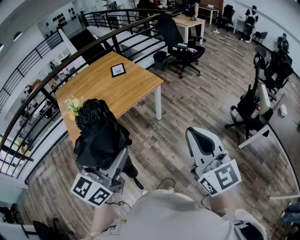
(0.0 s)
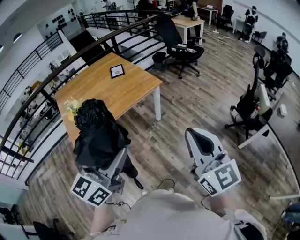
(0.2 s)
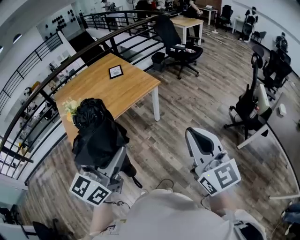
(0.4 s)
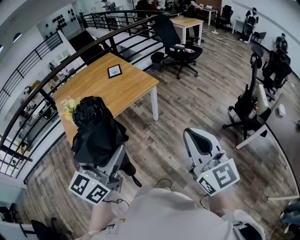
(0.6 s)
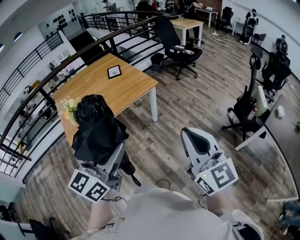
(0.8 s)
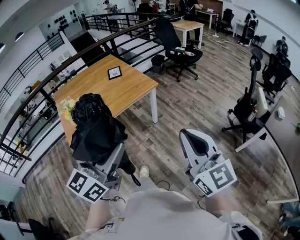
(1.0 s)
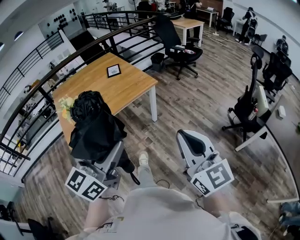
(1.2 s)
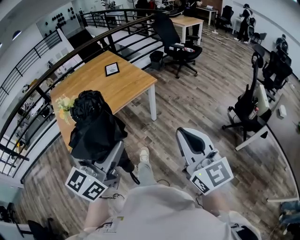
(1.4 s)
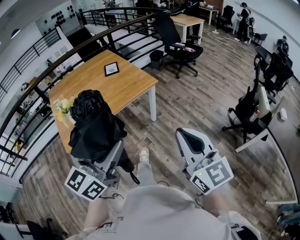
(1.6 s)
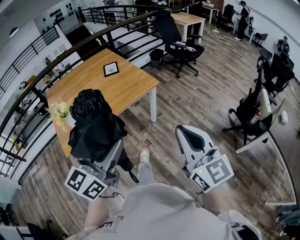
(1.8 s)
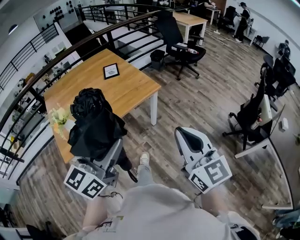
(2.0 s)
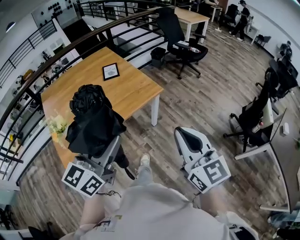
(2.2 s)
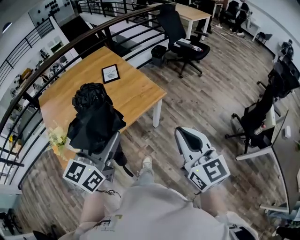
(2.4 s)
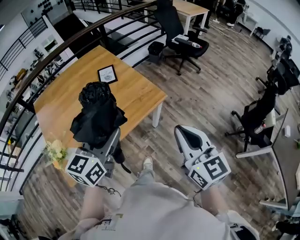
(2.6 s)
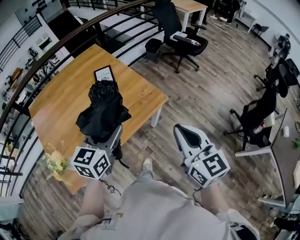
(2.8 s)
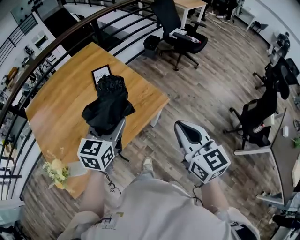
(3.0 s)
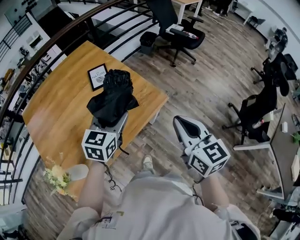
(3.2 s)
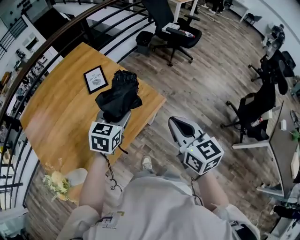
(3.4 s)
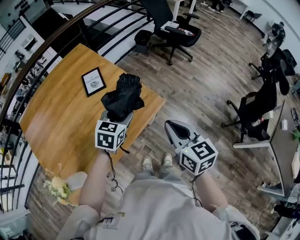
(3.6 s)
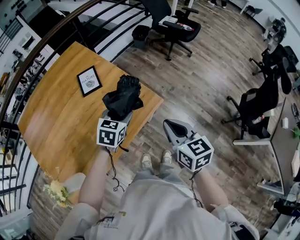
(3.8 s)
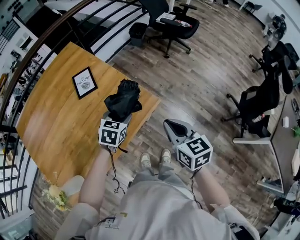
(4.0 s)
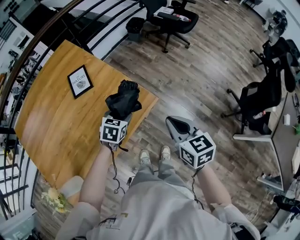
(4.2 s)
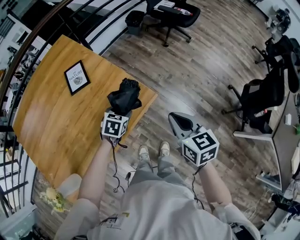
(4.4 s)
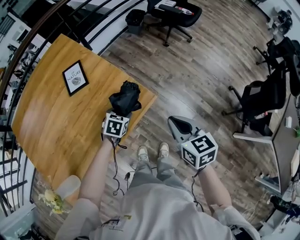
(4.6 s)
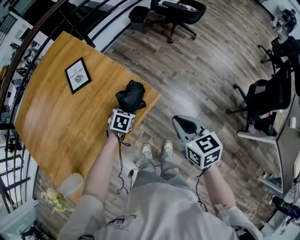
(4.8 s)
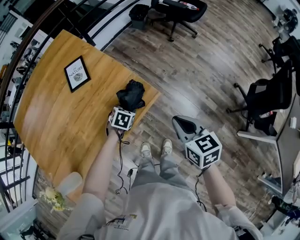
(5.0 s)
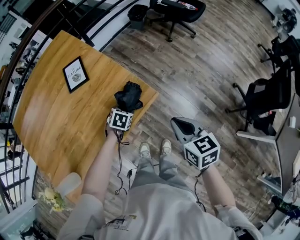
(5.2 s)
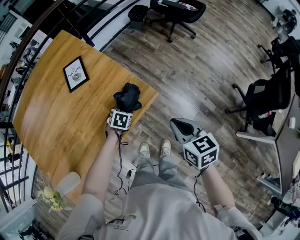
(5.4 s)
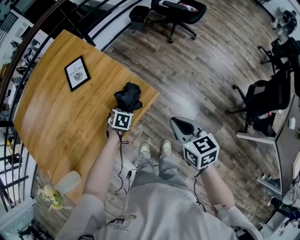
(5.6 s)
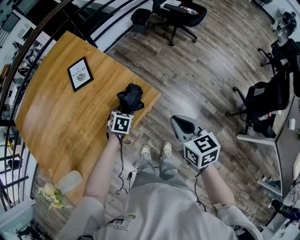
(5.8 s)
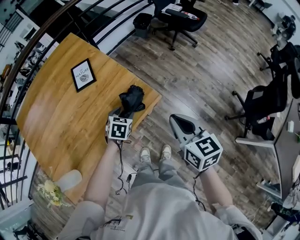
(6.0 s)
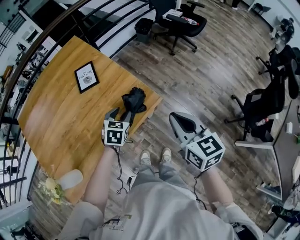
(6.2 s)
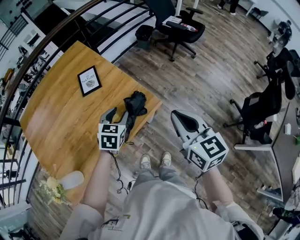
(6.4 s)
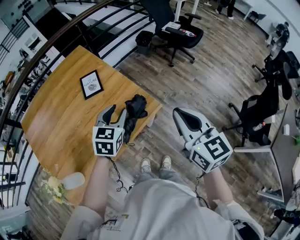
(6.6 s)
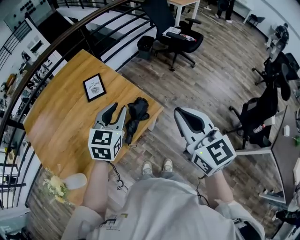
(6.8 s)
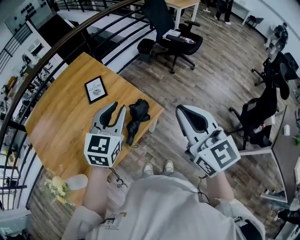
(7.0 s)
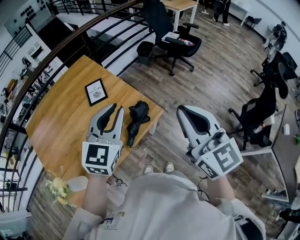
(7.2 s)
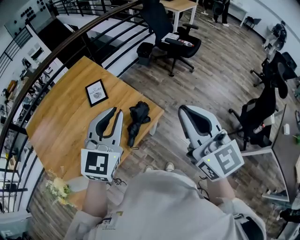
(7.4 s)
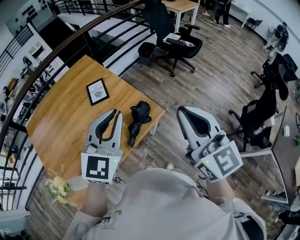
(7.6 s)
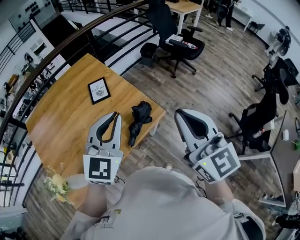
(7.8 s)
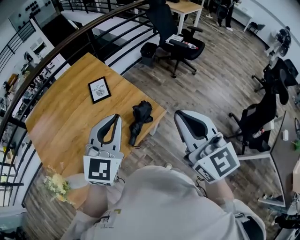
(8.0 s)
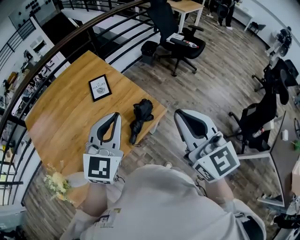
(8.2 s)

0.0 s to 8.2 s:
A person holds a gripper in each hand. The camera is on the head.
0.0 to 1.6 s: The left gripper goes about 5 cm forward, while the right gripper travels downward and forward by approximately 10 cm.
1.6 to 3.2 s: Both grippers are carried forward, approximately 60 cm. The right gripper turns by roughly 20 degrees. The left gripper turns by roughly 30 degrees.
3.2 to 5.0 s: The left gripper is displaced downward by approximately 35 cm, and angles its fingers downward, by roughly 40 degrees, while the right gripper travels downward, forward and to the right by about 25 cm, and swivels approximately 20 degrees.
5.0 to 6.6 s: The right gripper moves upward, approximately 20 cm, and changes its angle by about 30 degrees; the left gripper moves upward, roughly 30 cm, and tips its fingers upward by about 30 degrees.
6.6 to 8.2 s: The right gripper goes some 10 cm upward and to the left; the left gripper shifts about 20 cm upward and backward, rotates approximately 30 degrees, and closes.

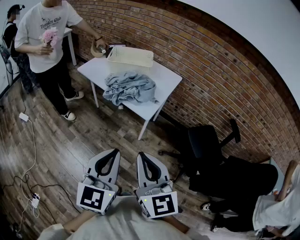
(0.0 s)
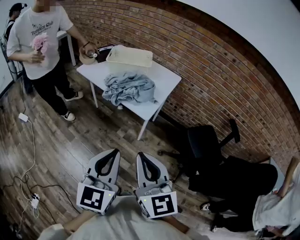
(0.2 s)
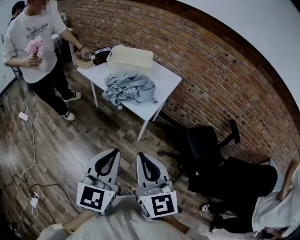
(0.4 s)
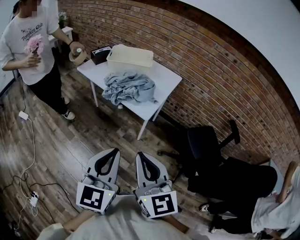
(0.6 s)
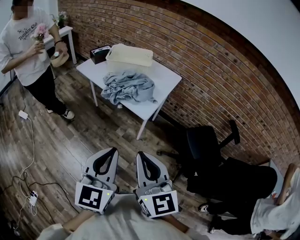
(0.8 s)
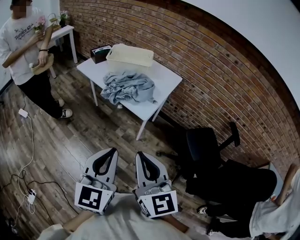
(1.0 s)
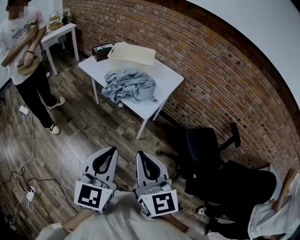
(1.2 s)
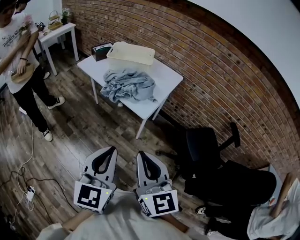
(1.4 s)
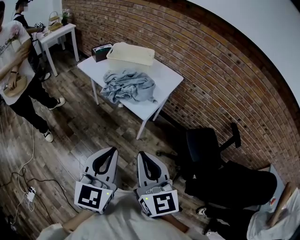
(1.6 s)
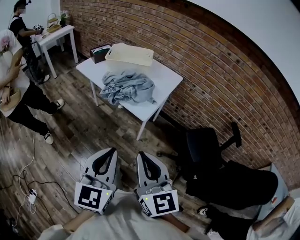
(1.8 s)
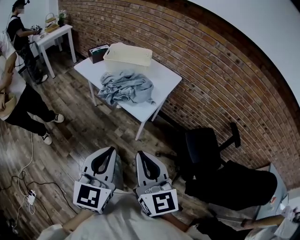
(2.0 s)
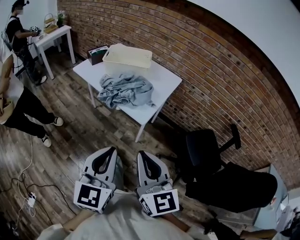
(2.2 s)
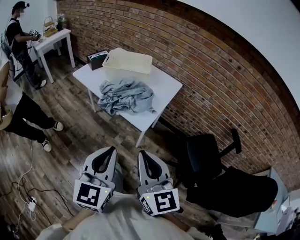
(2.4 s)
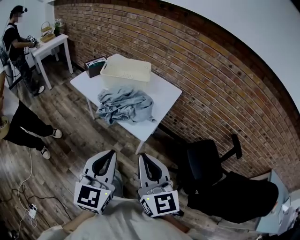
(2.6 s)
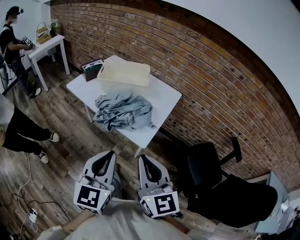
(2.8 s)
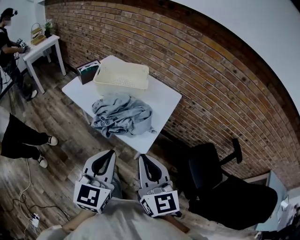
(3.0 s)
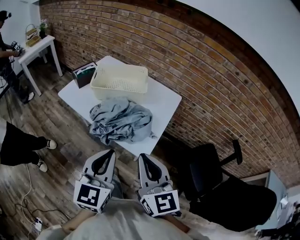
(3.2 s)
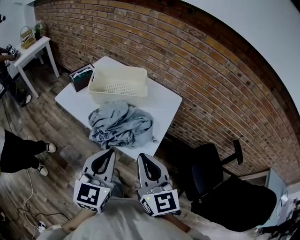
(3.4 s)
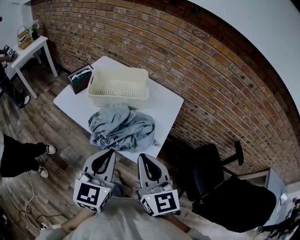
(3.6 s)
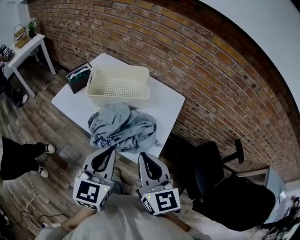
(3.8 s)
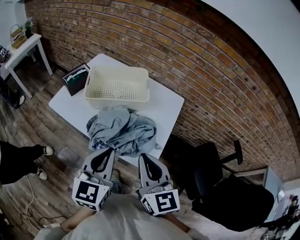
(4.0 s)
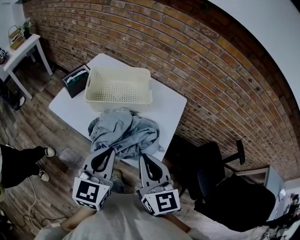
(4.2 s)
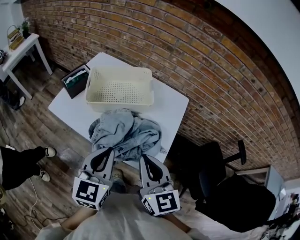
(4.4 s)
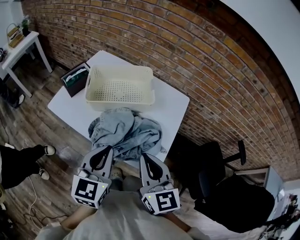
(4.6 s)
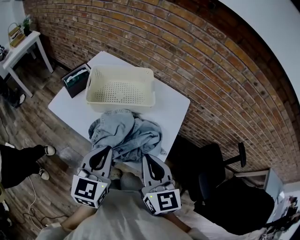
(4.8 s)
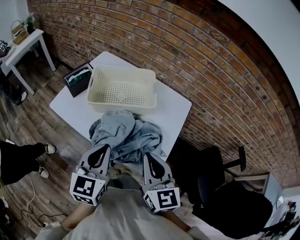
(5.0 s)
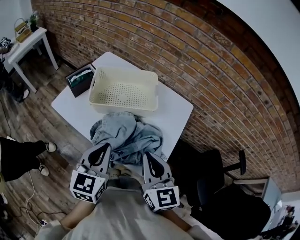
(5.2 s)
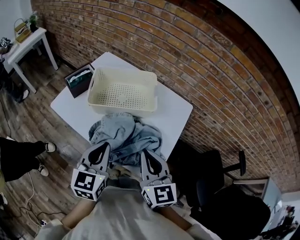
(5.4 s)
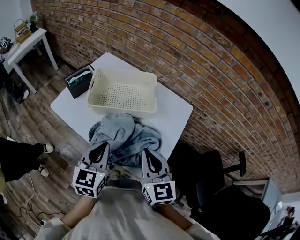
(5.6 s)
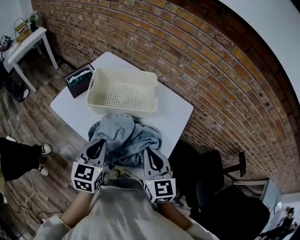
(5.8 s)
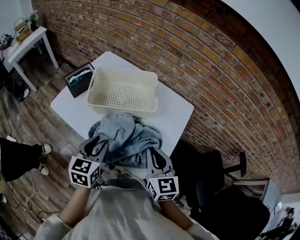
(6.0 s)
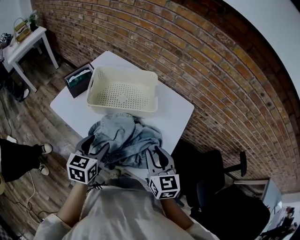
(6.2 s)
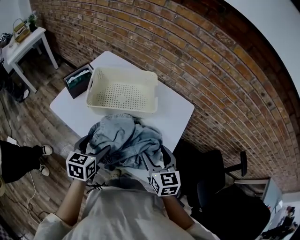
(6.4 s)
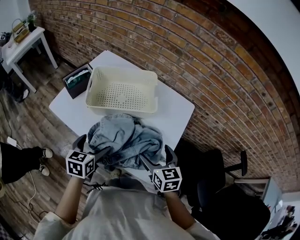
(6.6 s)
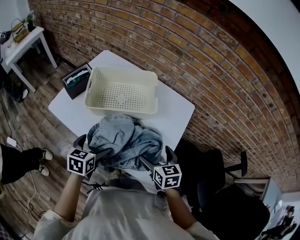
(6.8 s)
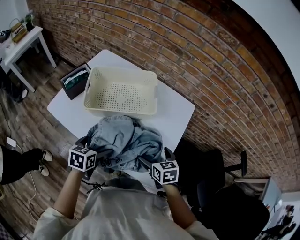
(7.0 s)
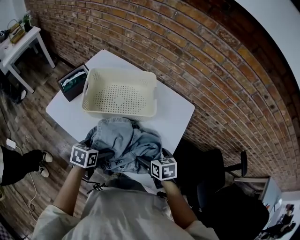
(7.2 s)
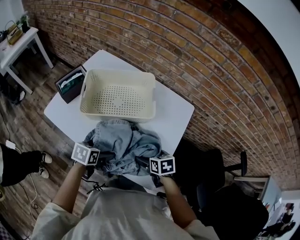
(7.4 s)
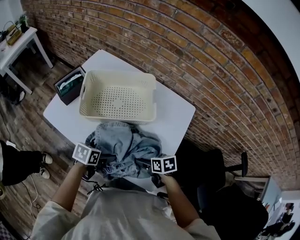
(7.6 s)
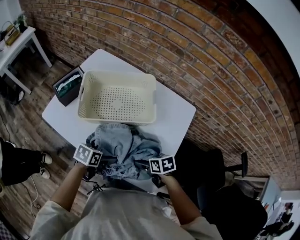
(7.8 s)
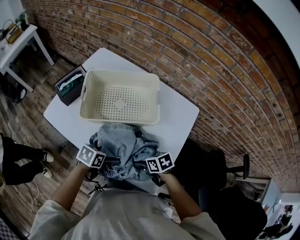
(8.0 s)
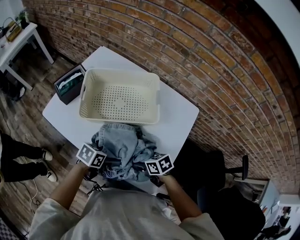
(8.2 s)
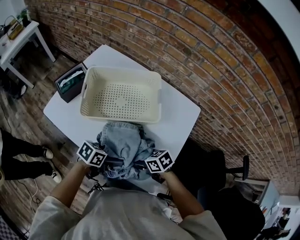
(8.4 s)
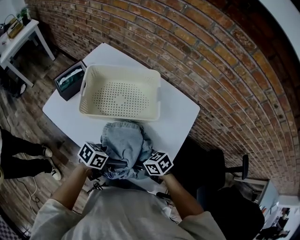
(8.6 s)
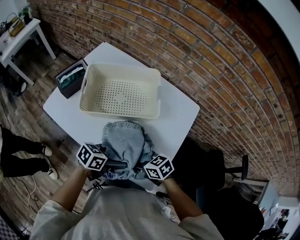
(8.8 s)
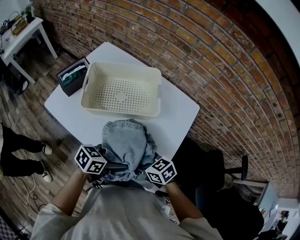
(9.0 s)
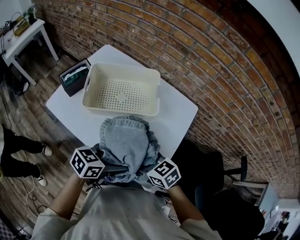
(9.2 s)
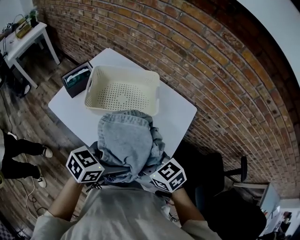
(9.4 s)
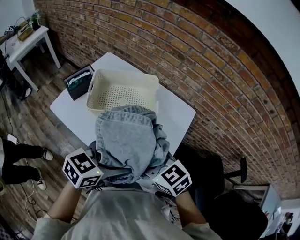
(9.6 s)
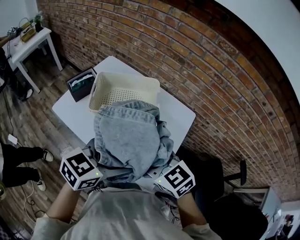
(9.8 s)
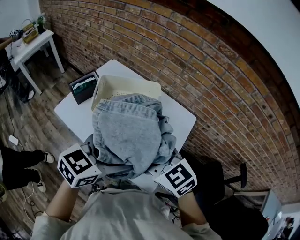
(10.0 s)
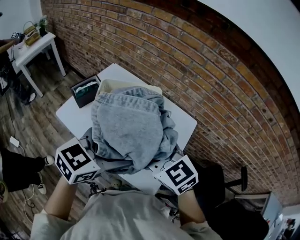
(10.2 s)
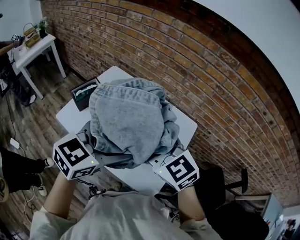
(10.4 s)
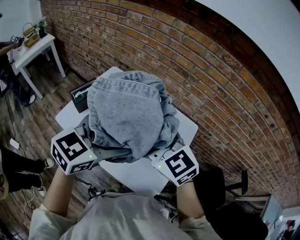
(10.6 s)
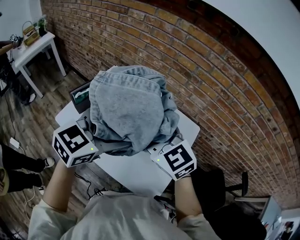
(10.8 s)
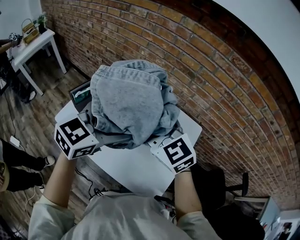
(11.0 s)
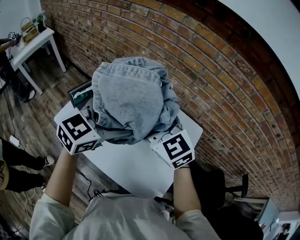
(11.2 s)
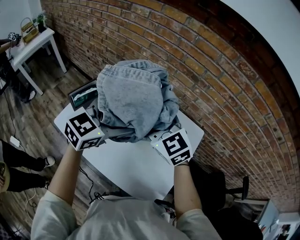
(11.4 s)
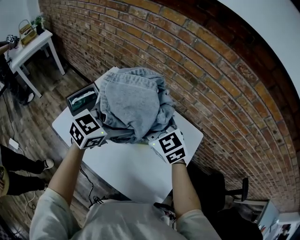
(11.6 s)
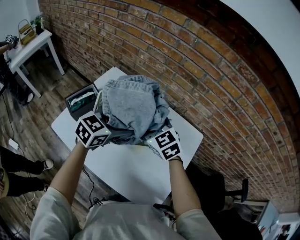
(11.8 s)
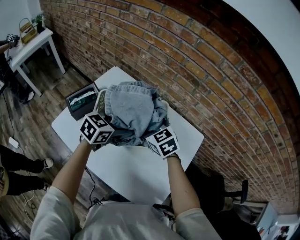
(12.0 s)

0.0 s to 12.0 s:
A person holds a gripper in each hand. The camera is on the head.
0.0 to 1.6 s: The grippers make only small movements.
1.6 to 3.0 s: Both grippers travel together forward, about 20 cm.
3.0 to 4.4 s: The grippers both shift forward by some 20 cm.
4.4 to 6.0 s: The left gripper is displaced downward and forward by roughly 10 cm, while the right gripper moves forward and downward, approximately 10 cm.
6.0 to 7.6 s: Both grippers move downward, about 20 cm. The right gripper tips its fingers downward by roughly 40 degrees, and opens its fingers. The left gripper changes its angle by about 40 degrees, and opens up.
7.6 to 9.0 s: The left gripper moves approximately 10 cm, and turns by about 30 degrees; the right gripper moves some 10 cm, turns by approximately 30 degrees, and closes its fingers.
9.0 to 10.4 s: The two grippers go about 25 cm upward. The right gripper swivels roughly 40 degrees. Meanwhile the left gripper swivels some 40 degrees.
10.4 to 12.0 s: The grippers both shift forward and downward by some 25 cm.

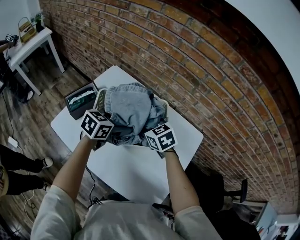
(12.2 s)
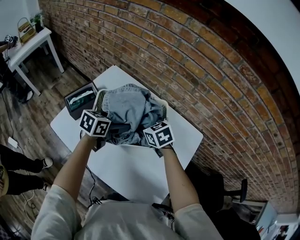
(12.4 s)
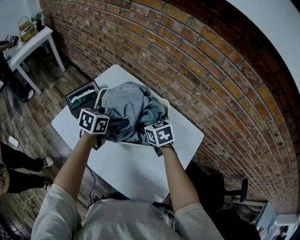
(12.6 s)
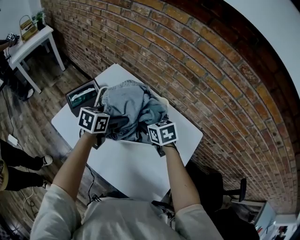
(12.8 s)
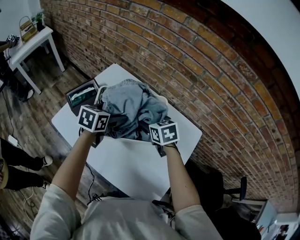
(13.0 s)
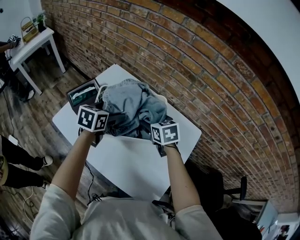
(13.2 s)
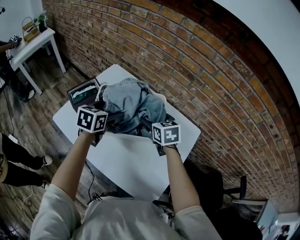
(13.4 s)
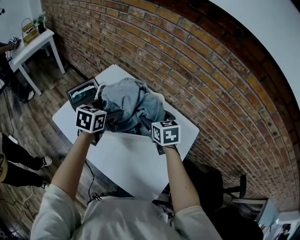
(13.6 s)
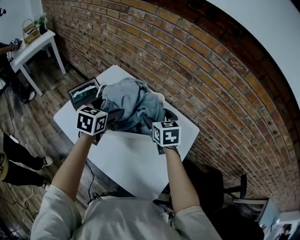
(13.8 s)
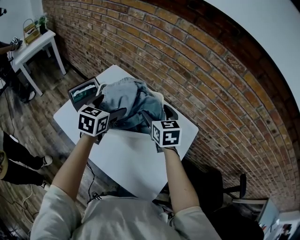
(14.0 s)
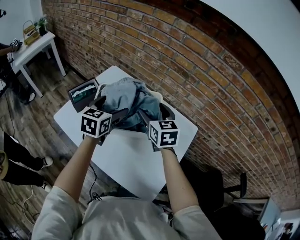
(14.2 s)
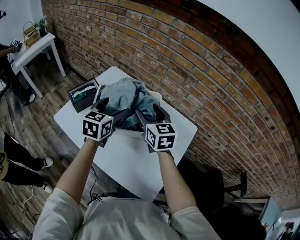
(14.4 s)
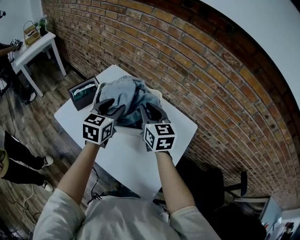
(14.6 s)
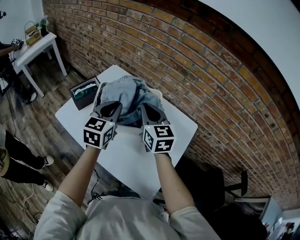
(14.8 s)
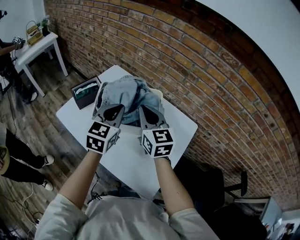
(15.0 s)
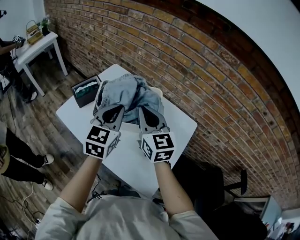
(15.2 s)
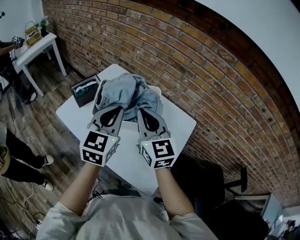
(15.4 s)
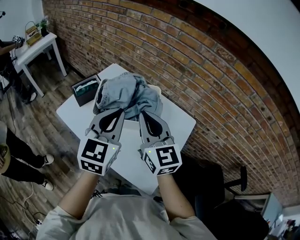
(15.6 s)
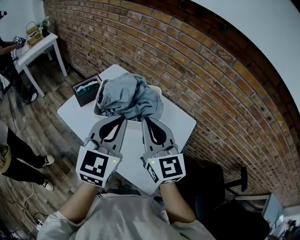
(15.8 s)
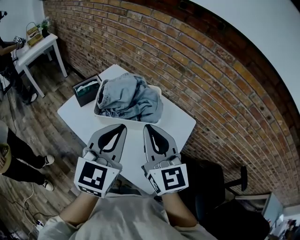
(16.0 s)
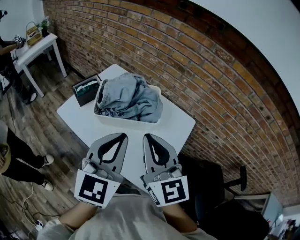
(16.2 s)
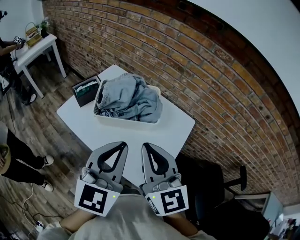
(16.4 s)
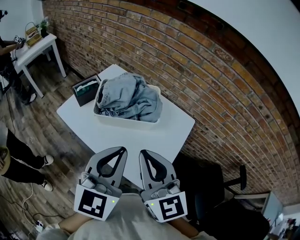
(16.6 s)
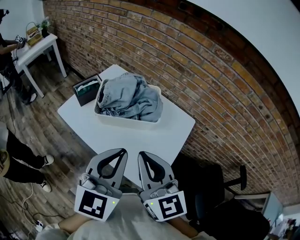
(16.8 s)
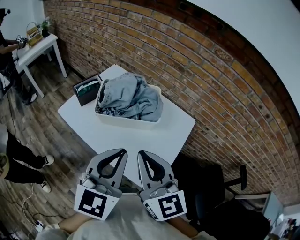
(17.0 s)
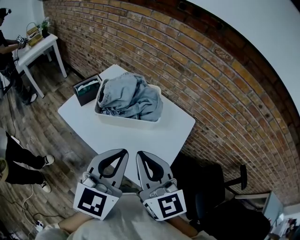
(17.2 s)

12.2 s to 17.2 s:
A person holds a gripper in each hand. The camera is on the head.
12.2 to 13.8 s: The right gripper travels to the right and upward by about 10 cm, and turns by roughly 20 degrees, while the left gripper is displaced upward and to the left by some 5 cm, and swivels roughly 30 degrees.
13.8 to 15.6 s: The two grippers go roughly 20 cm backward and upward. The right gripper angles its fingers upward, by about 30 degrees, and closes; the left gripper swivels some 20 degrees, and closes its fingers.
15.6 to 17.2 s: Both grippers move backward, roughly 15 cm.
